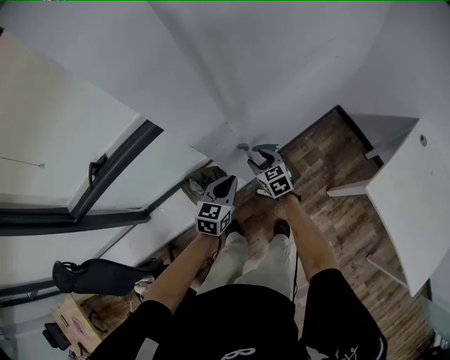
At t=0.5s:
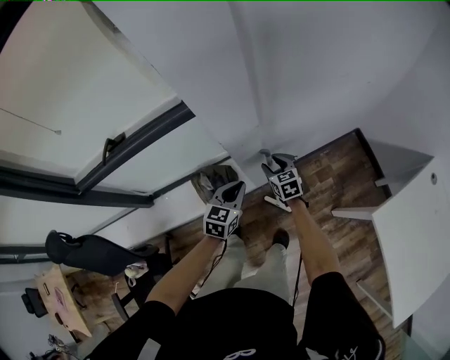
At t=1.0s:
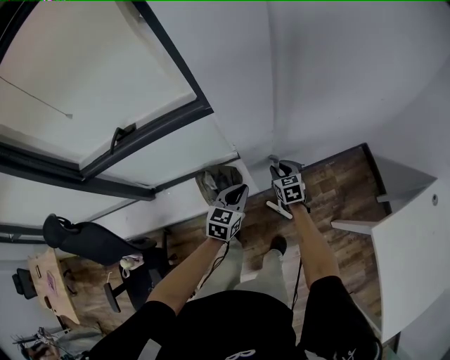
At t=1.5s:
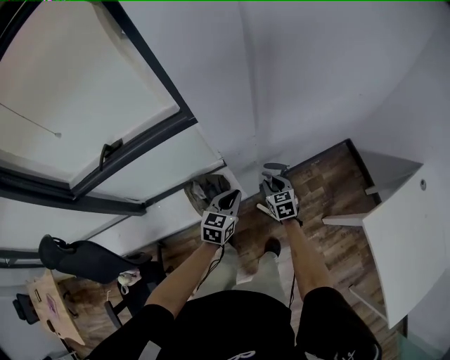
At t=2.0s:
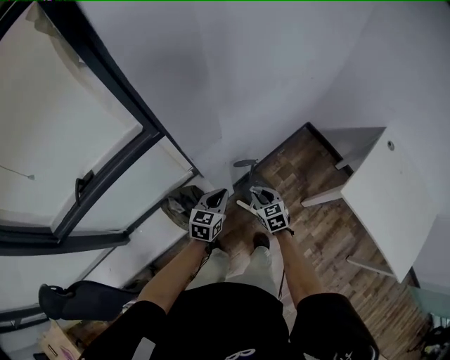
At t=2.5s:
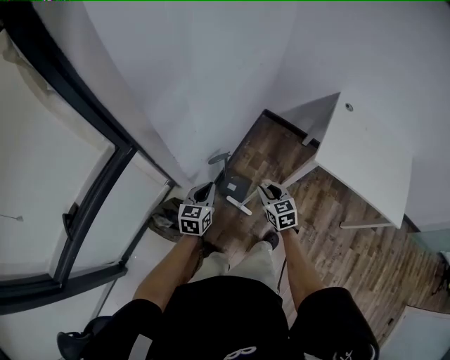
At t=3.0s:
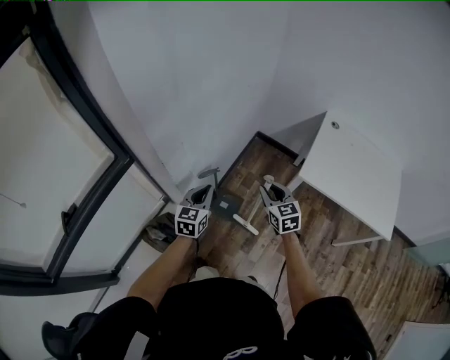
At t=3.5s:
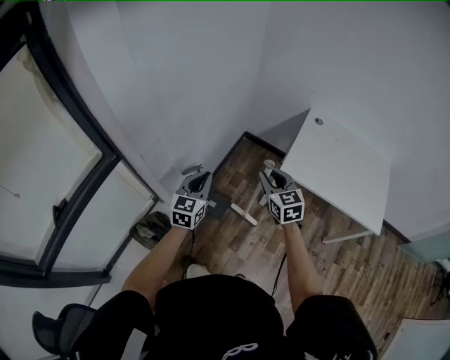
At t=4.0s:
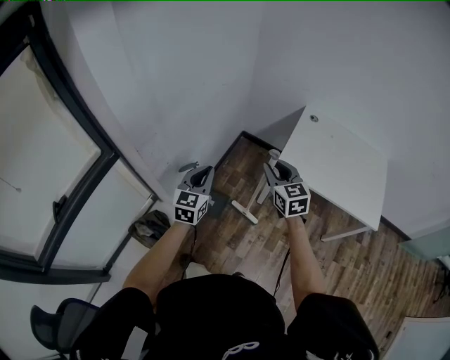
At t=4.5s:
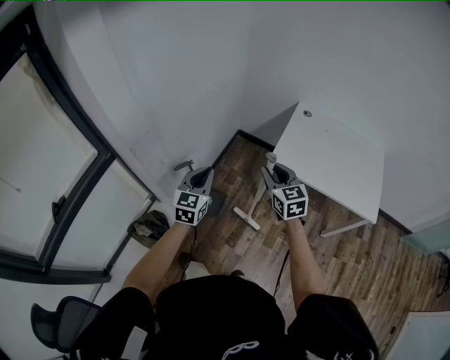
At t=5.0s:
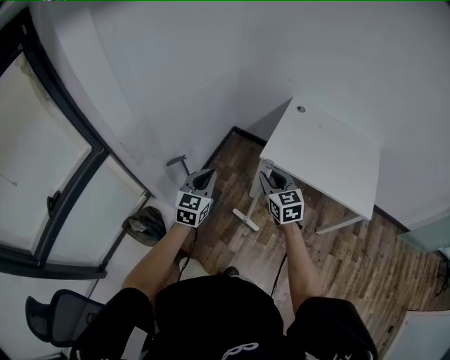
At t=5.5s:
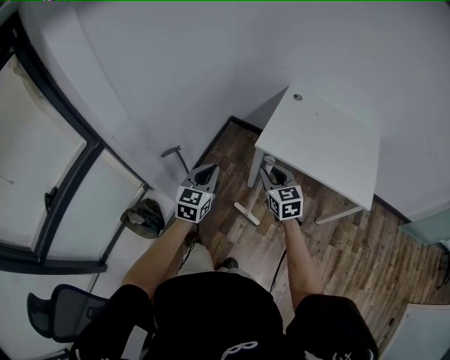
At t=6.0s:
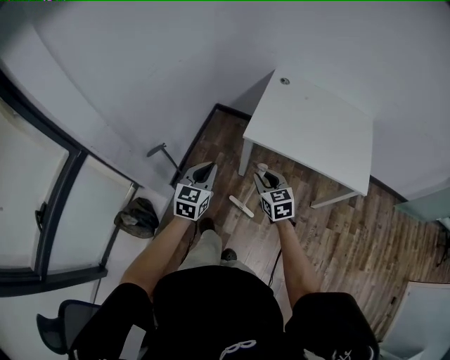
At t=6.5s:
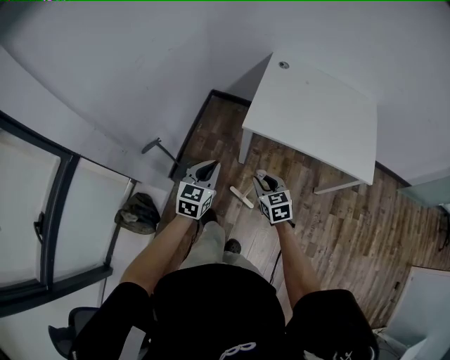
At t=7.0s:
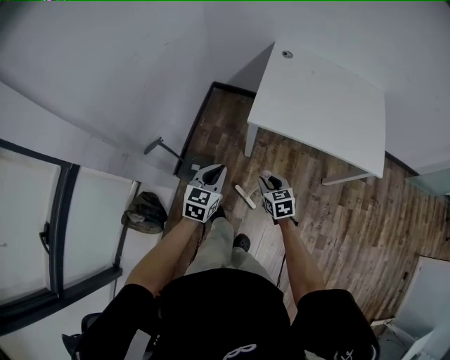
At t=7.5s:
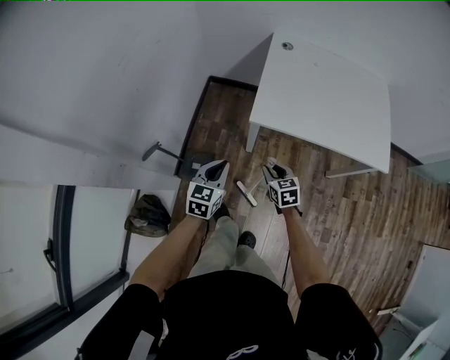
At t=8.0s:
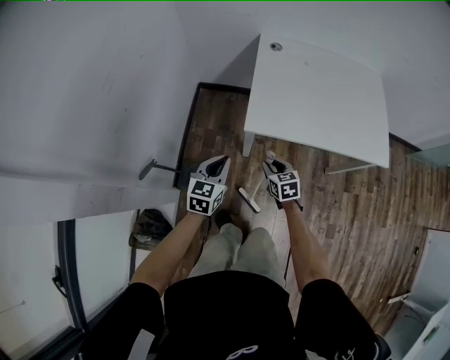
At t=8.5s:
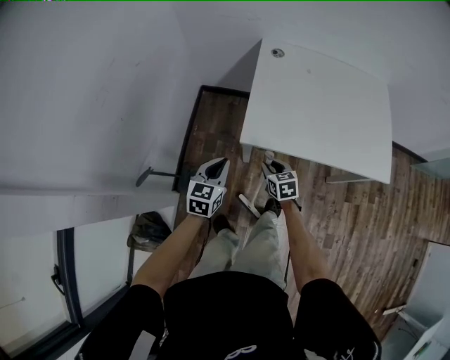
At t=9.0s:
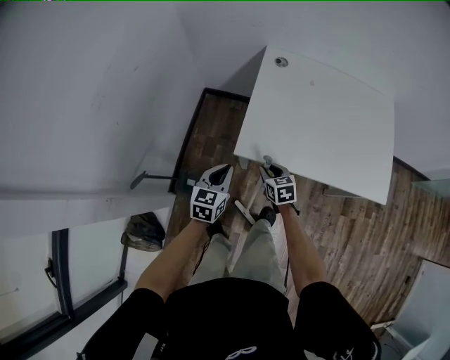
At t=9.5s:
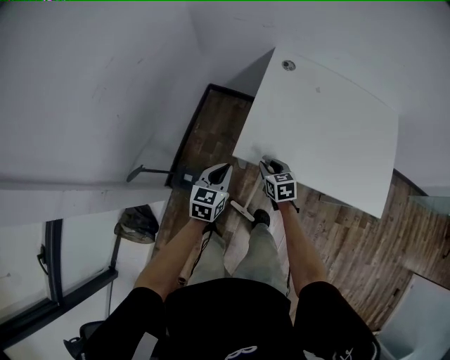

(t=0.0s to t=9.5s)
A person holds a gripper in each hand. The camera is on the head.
t=0.0s - t=2.0s: The right gripper goes roughly 10 cm backward.
t=2.0s - t=4.0s: The left gripper travels to the right and upward by about 25 cm, and swivels some 30 degrees. Meanwhile the right gripper travels upward and to the right by some 40 cm, and changes its angle by roughly 30 degrees.
t=4.0s - t=5.5s: The left gripper goes roughly 15 cm to the right and backward; the right gripper travels to the right, backward and downward by roughly 15 cm.
t=5.5s - t=7.5s: The left gripper goes approximately 20 cm downward and forward, and changes its angle by about 20 degrees. Meanwhile the right gripper heads downward, covering approximately 25 cm, and rotates roughly 30 degrees.
t=7.5s - t=9.5s: The left gripper moves forward and to the right, roughly 20 cm. The right gripper travels forward by about 20 cm.

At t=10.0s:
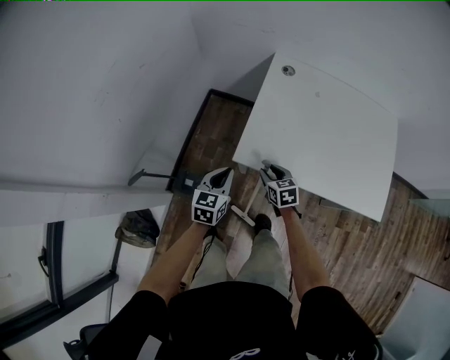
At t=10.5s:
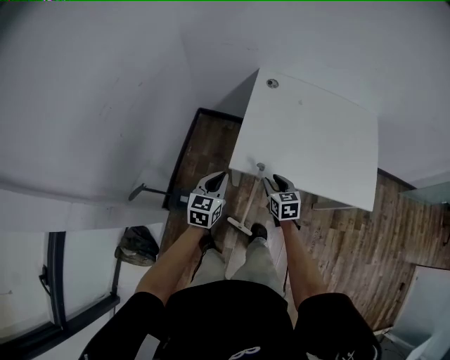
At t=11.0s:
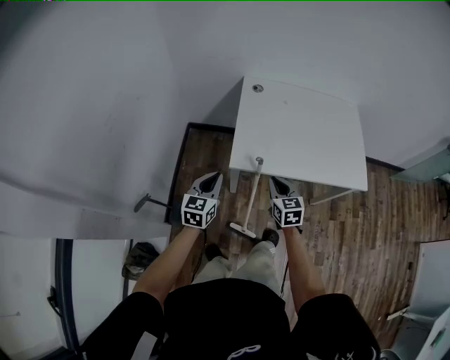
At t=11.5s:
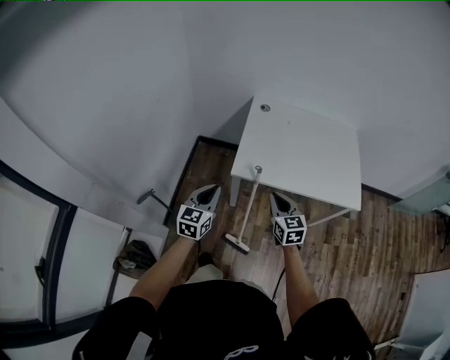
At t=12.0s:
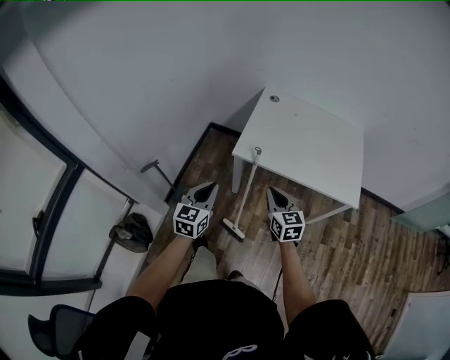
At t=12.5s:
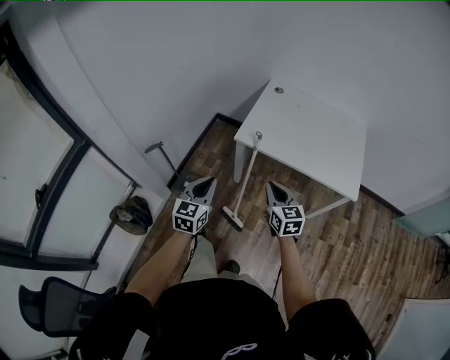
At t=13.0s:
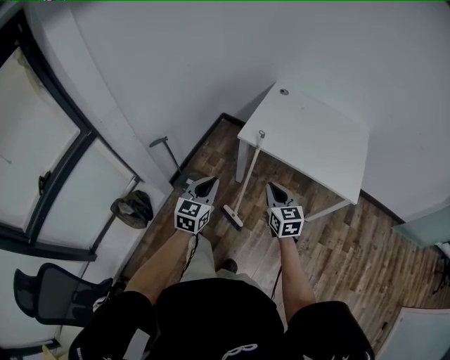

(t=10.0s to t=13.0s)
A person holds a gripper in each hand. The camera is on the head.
t=10.0s - t=11.5s: The two grippers go about 25 cm upward and backward. The right gripper rotates some 30 degrees, and closes its fingers.
t=11.5s - t=13.0s: The two grippers go roughly 20 cm backward.

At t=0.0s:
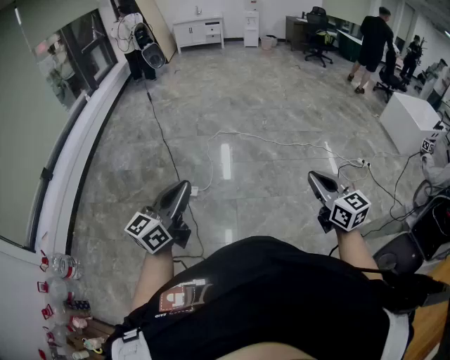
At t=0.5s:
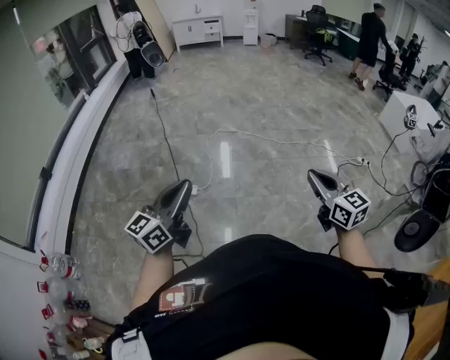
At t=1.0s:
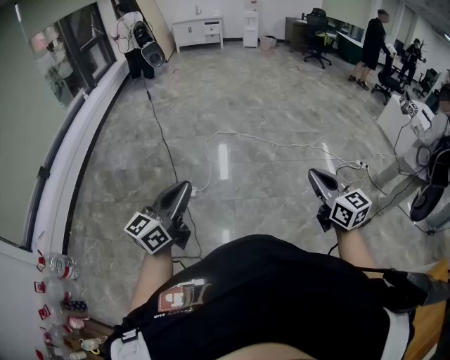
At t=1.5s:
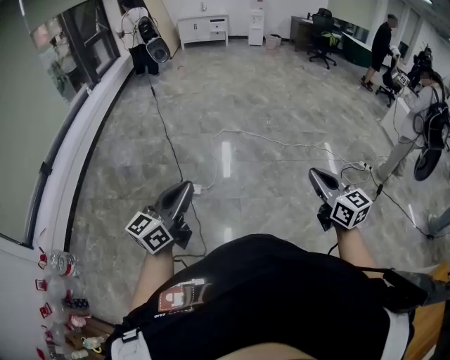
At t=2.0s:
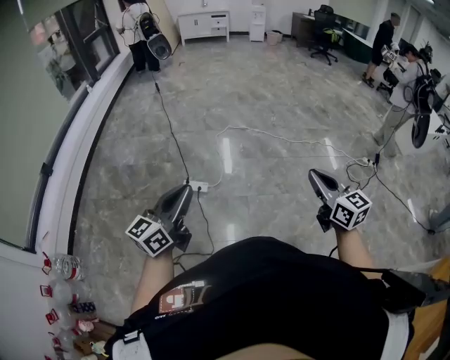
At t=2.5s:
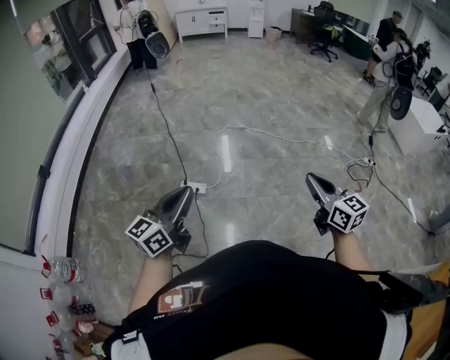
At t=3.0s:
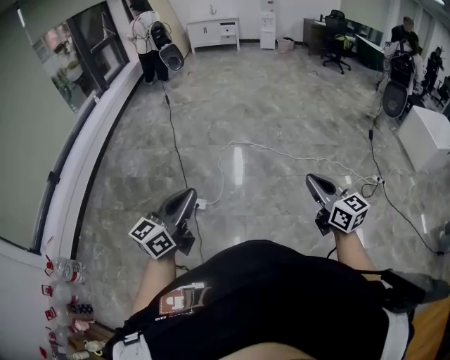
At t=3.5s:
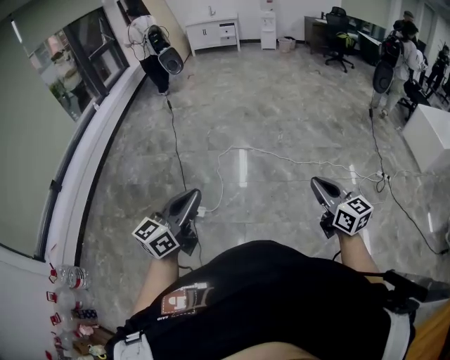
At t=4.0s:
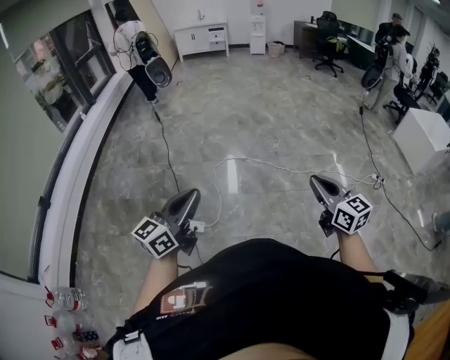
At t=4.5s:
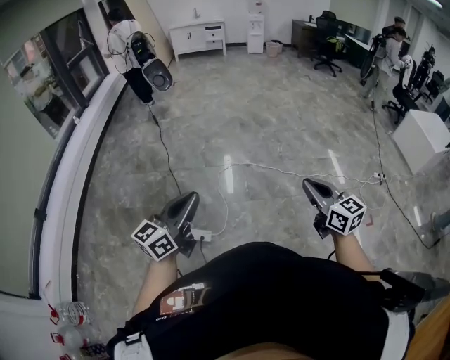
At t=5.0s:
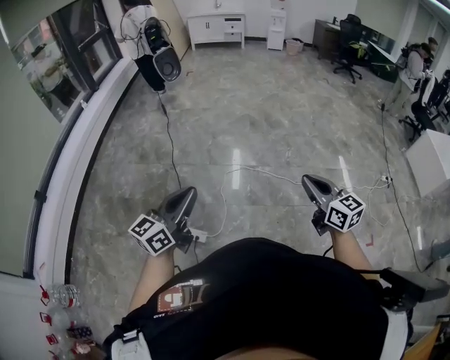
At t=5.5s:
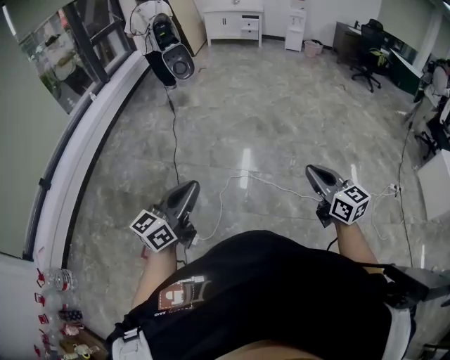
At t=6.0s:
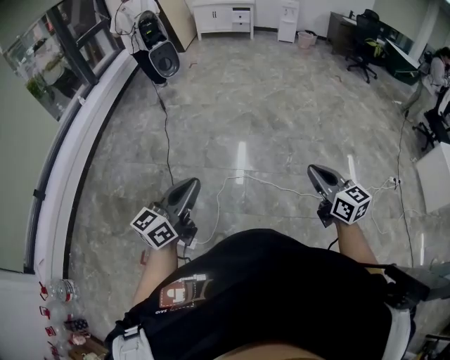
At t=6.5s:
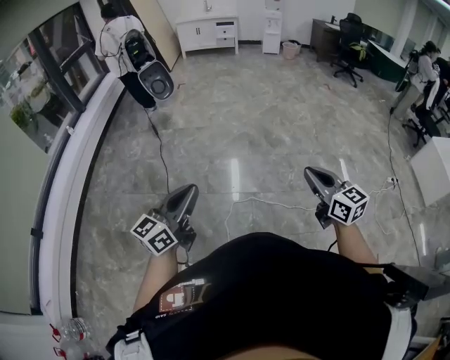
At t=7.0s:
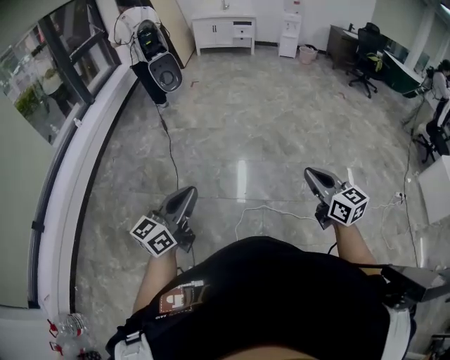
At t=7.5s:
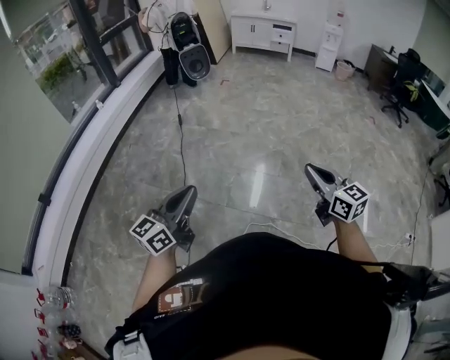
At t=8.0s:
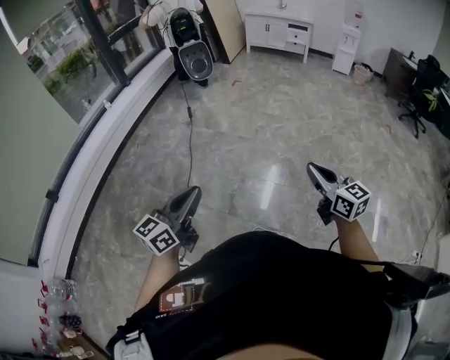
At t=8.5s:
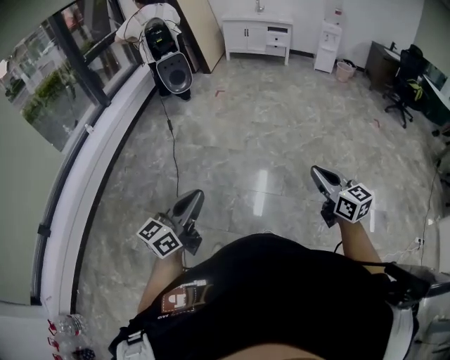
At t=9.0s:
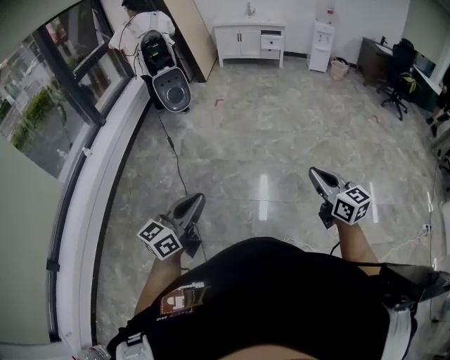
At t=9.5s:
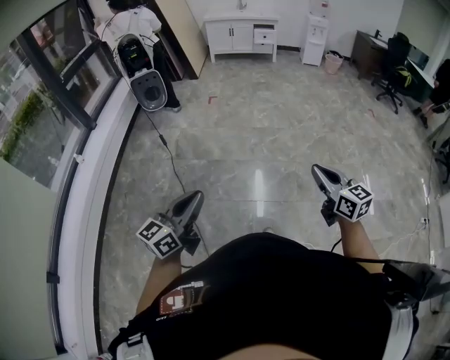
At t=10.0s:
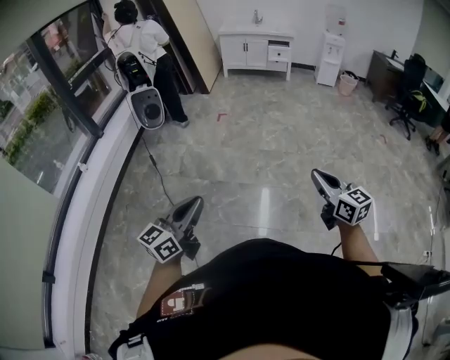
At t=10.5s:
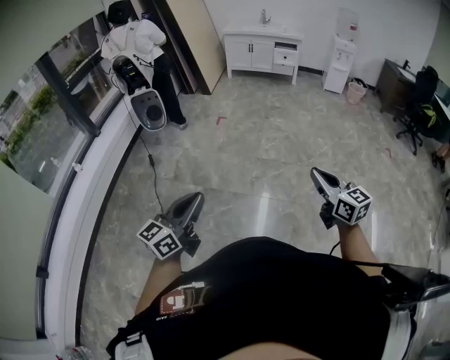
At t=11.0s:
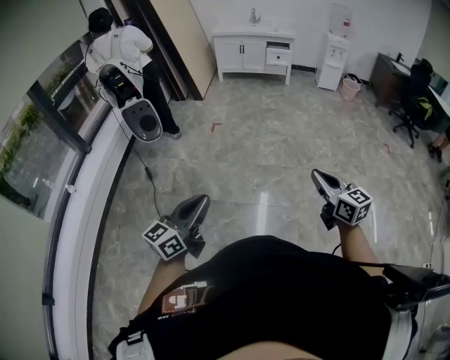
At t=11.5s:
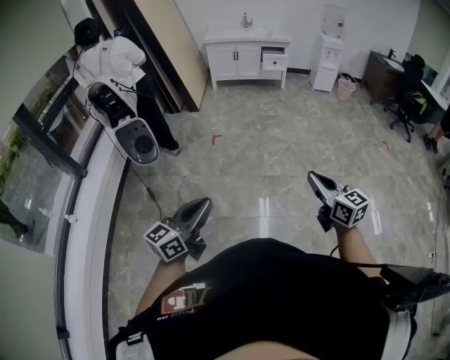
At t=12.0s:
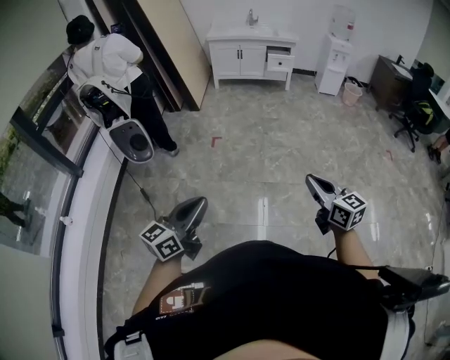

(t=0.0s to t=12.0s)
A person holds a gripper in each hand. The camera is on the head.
t=0.0s - t=2.0s: Both grippers move to the left, roughly 15 cm.
t=2.0s - t=4.0s: The grippers both shift forward by approximately 30 cm.
t=4.0s - t=6.0s: Both grippers are carried forward, roughly 40 cm.
t=6.0s - t=8.0s: The pair of grippers is taken forward, roughly 50 cm.
t=8.0s - t=10.0s: Both grippers are carried forward and to the left, about 50 cm.
t=10.0s - t=12.0s: The two grippers travel together, forward, roughly 50 cm.

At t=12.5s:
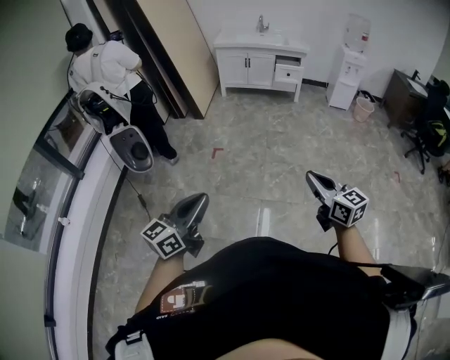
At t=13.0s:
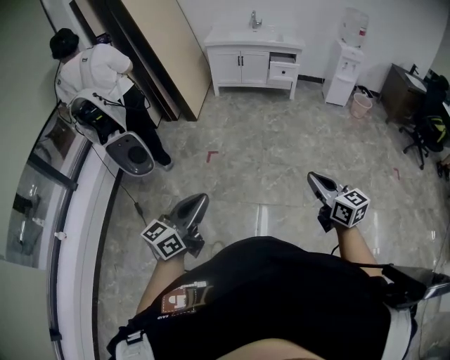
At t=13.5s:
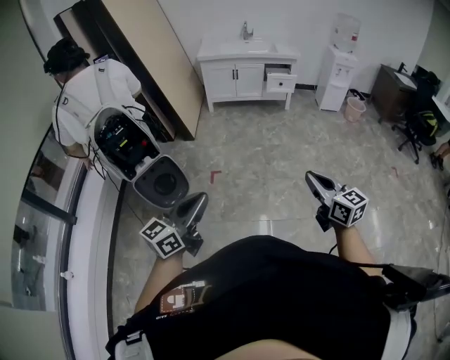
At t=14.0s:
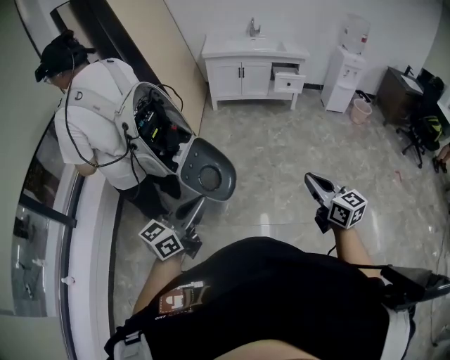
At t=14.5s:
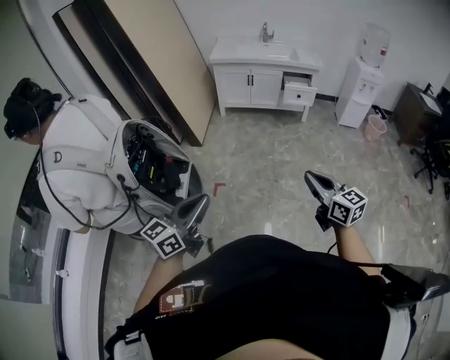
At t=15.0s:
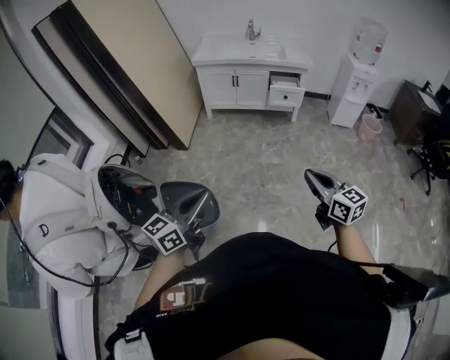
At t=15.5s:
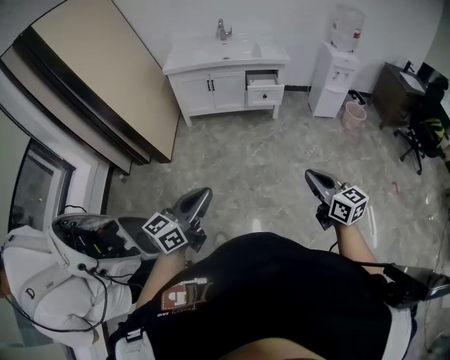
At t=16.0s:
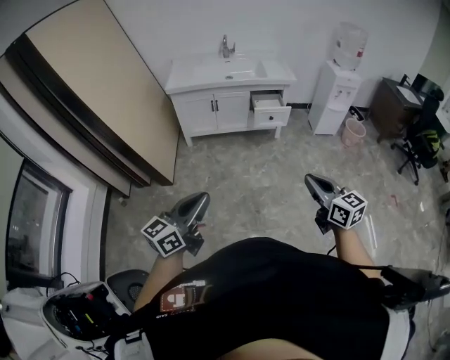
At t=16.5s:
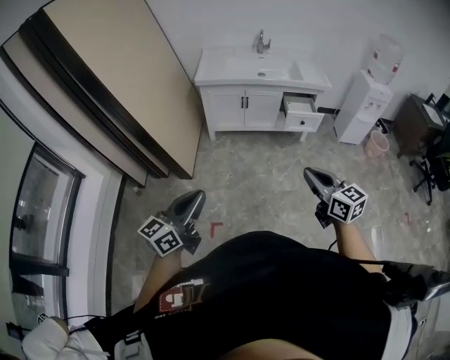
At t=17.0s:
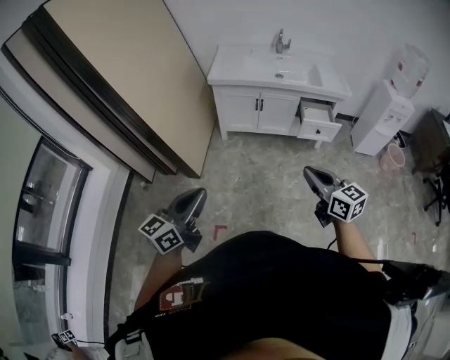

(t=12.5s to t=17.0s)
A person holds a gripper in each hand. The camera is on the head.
t=12.5s - t=14.5s: The two grippers travel together, forward, some 40 cm.
t=14.5s - t=17.0s: Both grippers are carried forward, about 50 cm.
